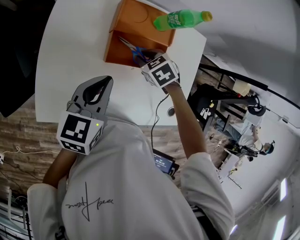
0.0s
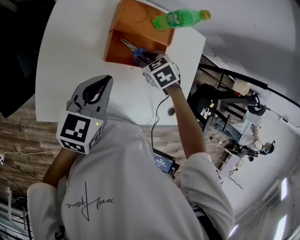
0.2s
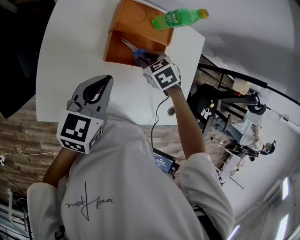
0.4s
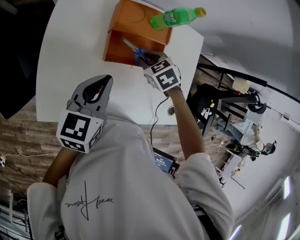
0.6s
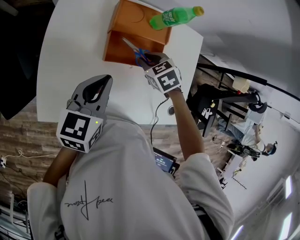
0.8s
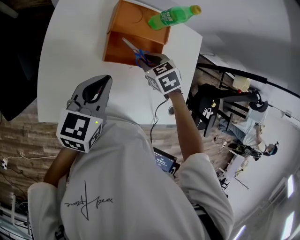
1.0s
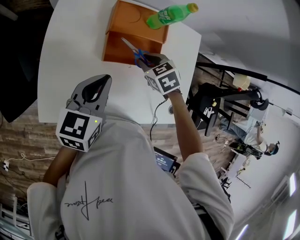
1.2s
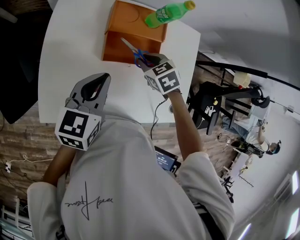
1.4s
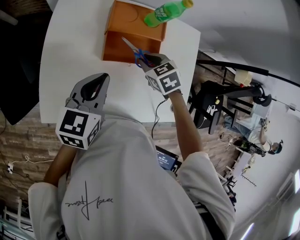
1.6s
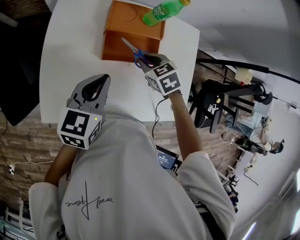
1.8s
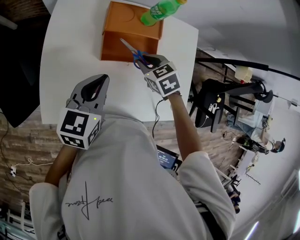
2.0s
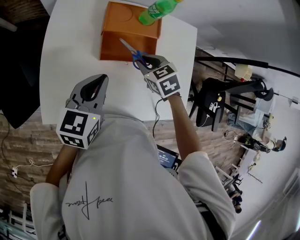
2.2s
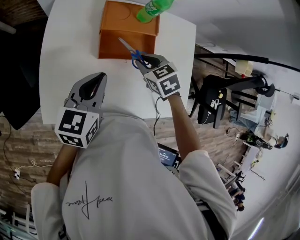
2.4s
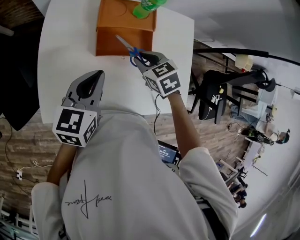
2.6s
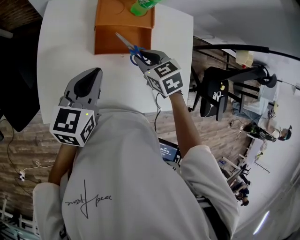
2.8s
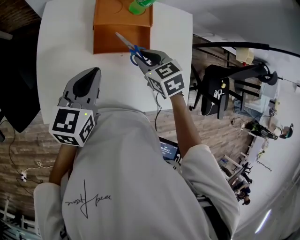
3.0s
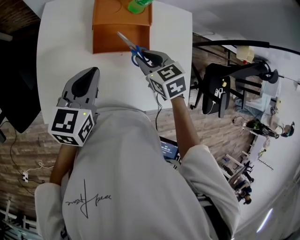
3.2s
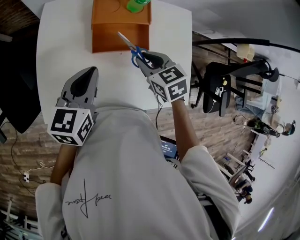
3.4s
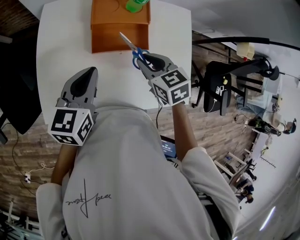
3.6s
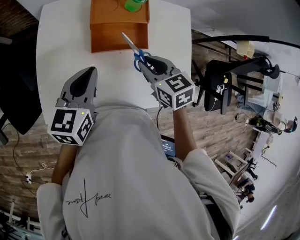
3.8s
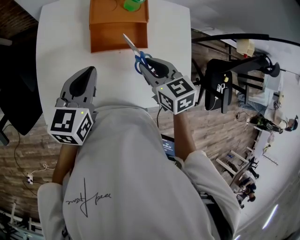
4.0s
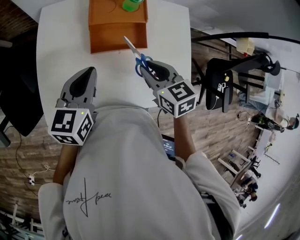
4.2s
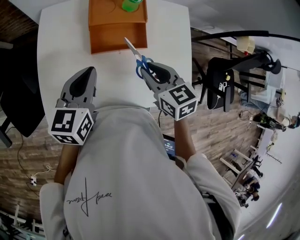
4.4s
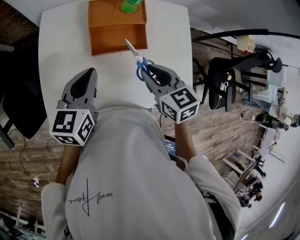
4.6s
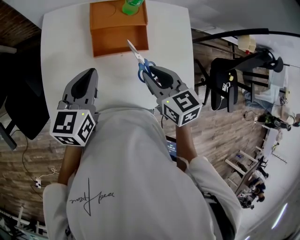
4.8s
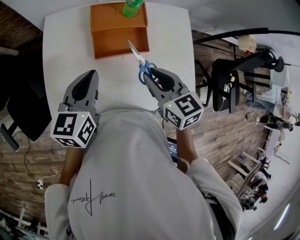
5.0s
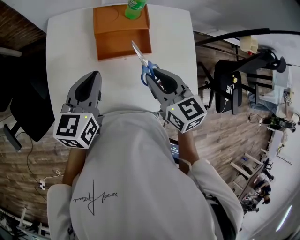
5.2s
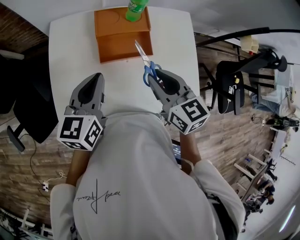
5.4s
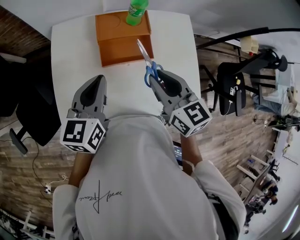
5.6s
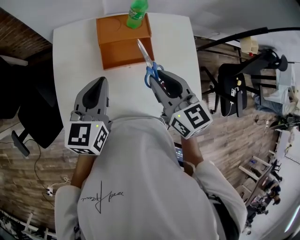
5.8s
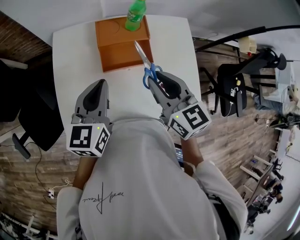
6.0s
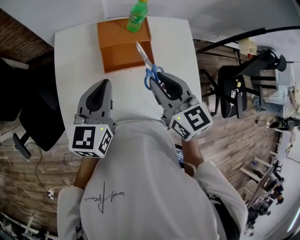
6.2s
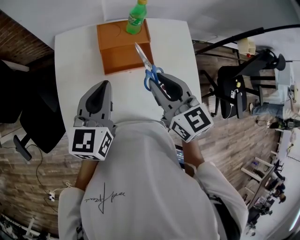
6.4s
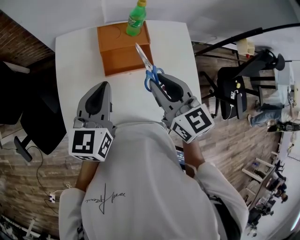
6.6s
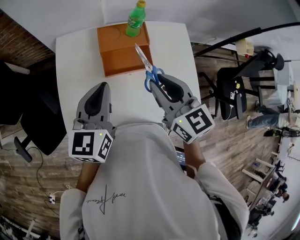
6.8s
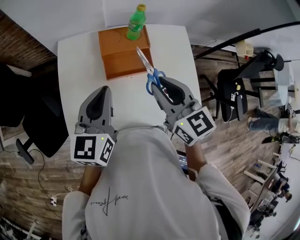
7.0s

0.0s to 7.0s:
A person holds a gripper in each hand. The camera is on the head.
0.0s to 1.4s: The grippers stay close to where they were, moving slightly.
1.4s to 2.8s: The right gripper moves about 5 cm.
2.8s to 4.2s: The right gripper moves backward and upward, about 10 cm.
4.2s to 5.6s: The right gripper heads upward, covering about 10 cm, and swivels approximately 20 degrees.
5.6s to 7.0s: Both grippers move upward, about 5 cm.

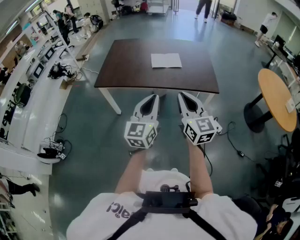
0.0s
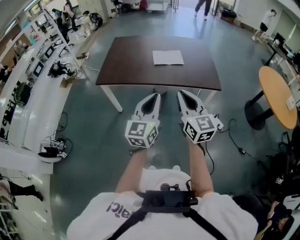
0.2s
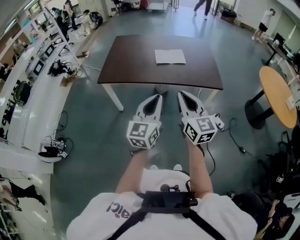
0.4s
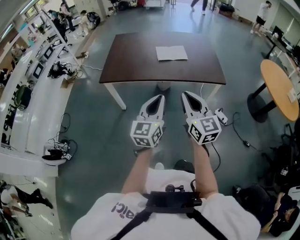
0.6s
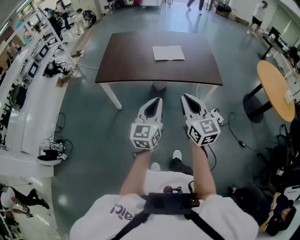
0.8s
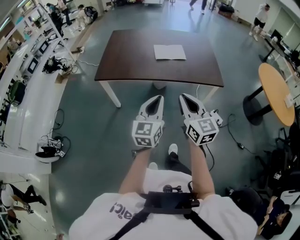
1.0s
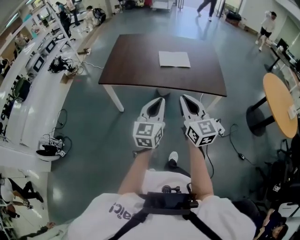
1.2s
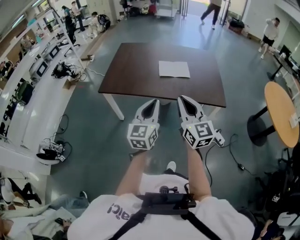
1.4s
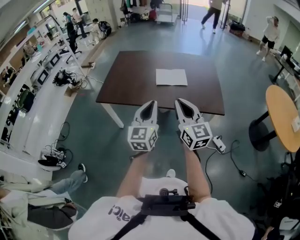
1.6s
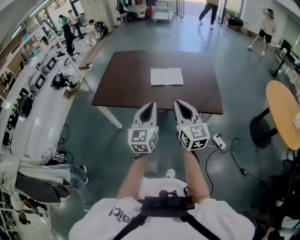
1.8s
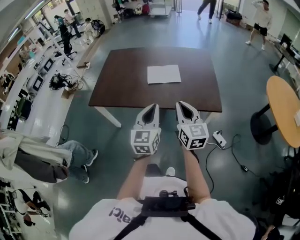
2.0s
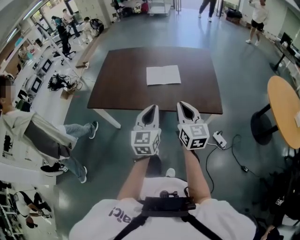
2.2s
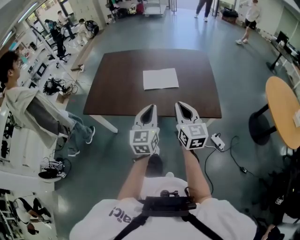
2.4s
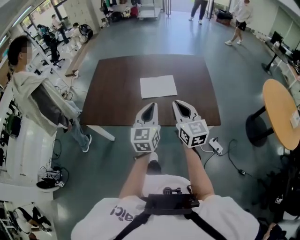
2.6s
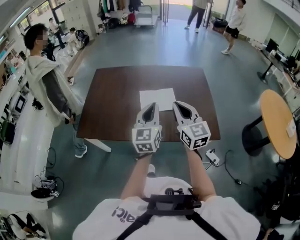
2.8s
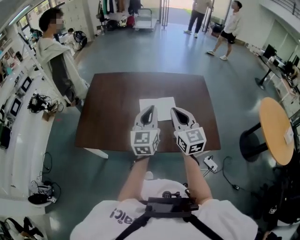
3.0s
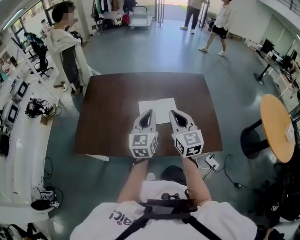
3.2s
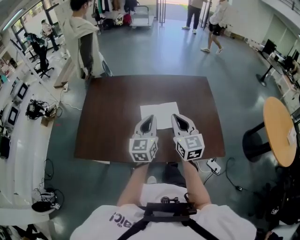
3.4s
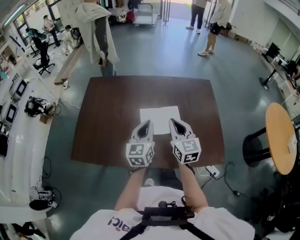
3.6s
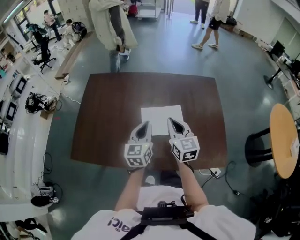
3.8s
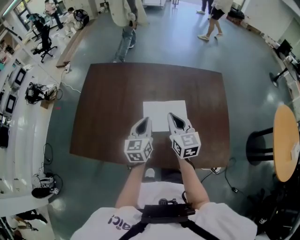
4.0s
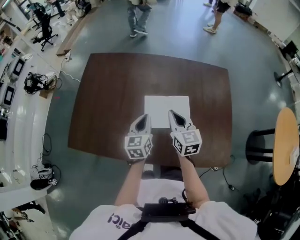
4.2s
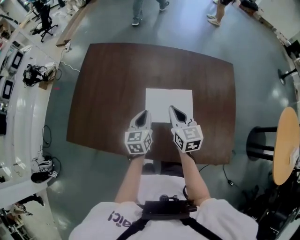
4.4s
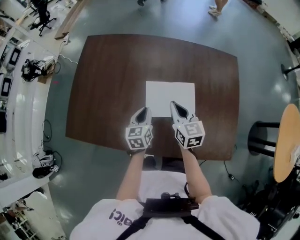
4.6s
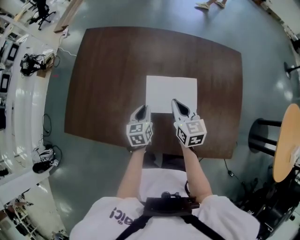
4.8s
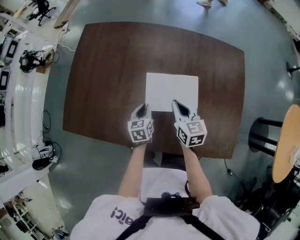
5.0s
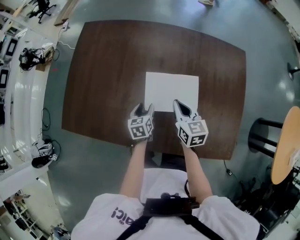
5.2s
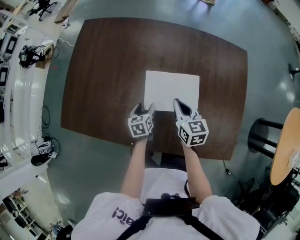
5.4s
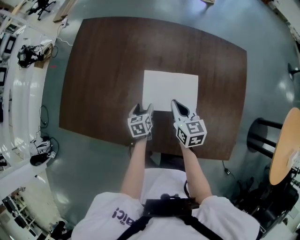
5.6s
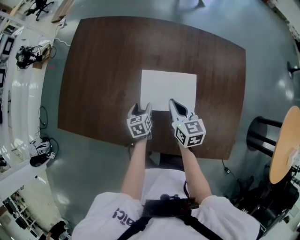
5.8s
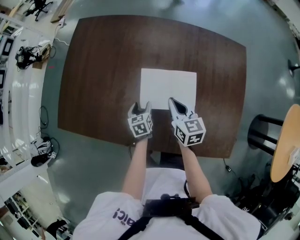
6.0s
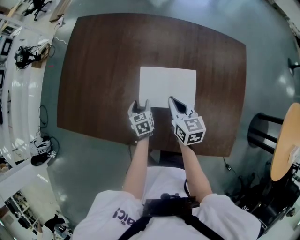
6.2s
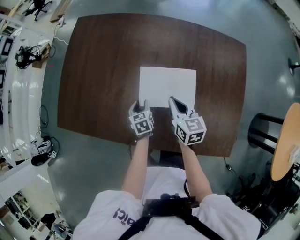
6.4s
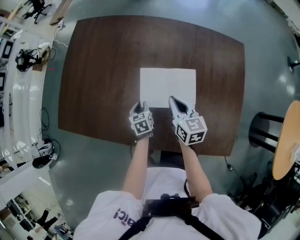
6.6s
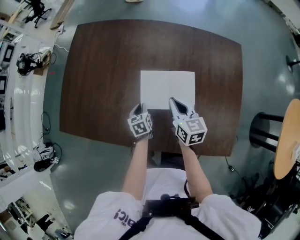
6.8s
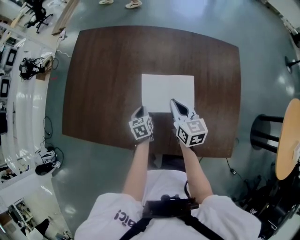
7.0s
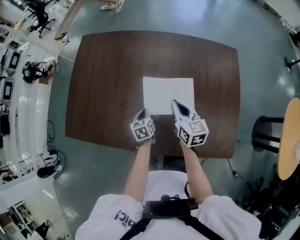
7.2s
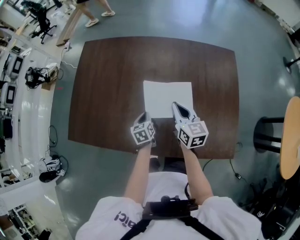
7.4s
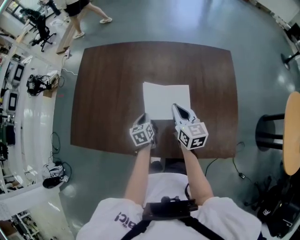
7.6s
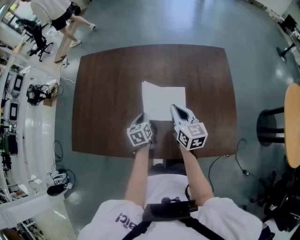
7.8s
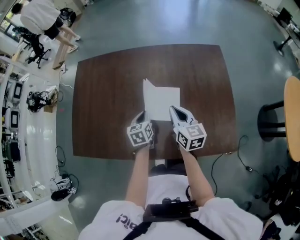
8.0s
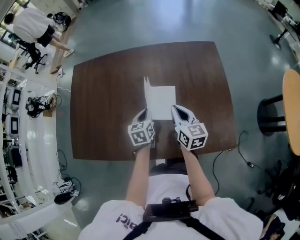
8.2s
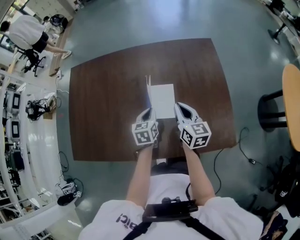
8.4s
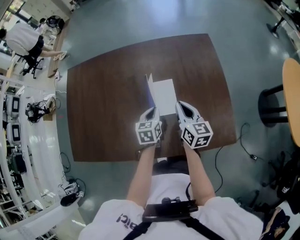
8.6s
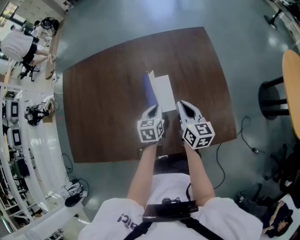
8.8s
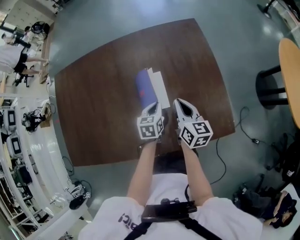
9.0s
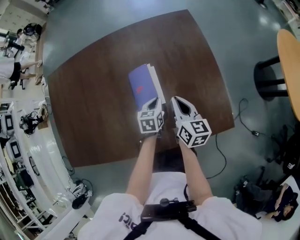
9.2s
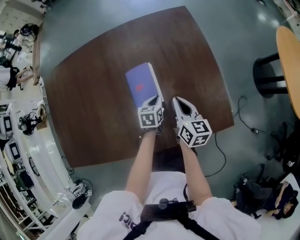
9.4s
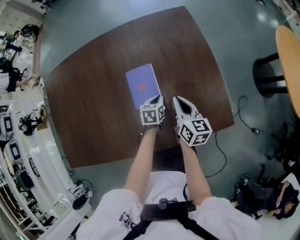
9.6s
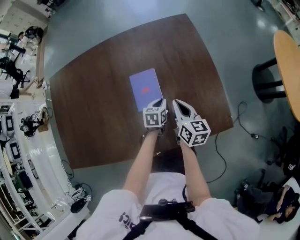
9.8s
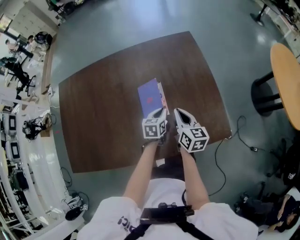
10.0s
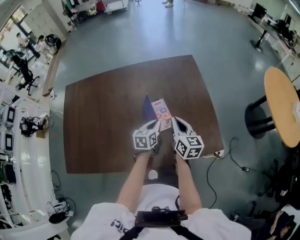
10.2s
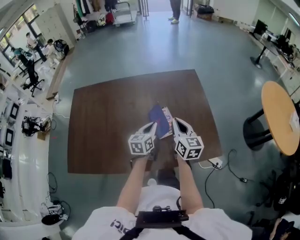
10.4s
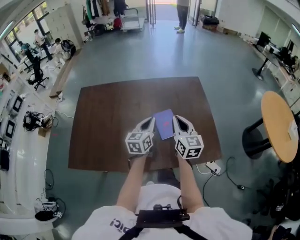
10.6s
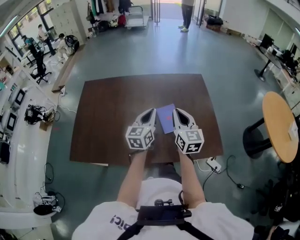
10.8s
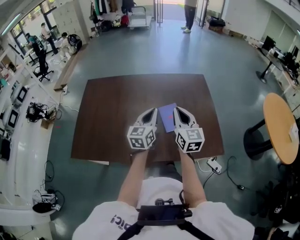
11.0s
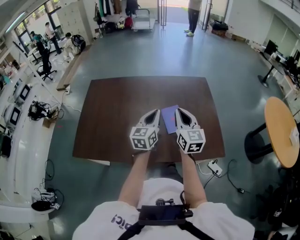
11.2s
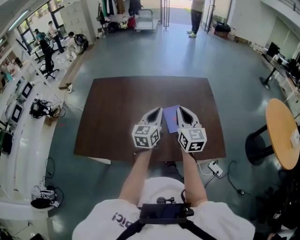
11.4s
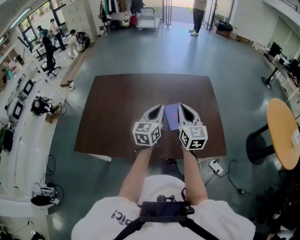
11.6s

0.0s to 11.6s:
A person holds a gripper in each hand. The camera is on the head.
0.0s to 1.4s: Both grippers travel together forward, approximately 10 cm.
1.4s to 2.8s: The grippers both shift forward by some 30 cm.
2.8s to 4.4s: The left gripper is displaced downward and forward by some 30 cm, and changes its angle by approximately 30 degrees; the right gripper heads forward and downward, covering about 30 cm, and changes its angle by roughly 20 degrees.
4.4s to 5.8s: The right gripper heads downward, covering some 10 cm, while the left gripper moves downward, some 20 cm, swivels roughly 30 degrees, and opens up.
5.8s to 7.2s: The left gripper closes its fingers.
7.2s to 8.8s: The left gripper heads to the right and upward, covering about 20 cm, and changes its angle by approximately 30 degrees. Meanwhile the right gripper travels to the right by roughly 15 cm, and swivels some 20 degrees.
8.8s to 10.2s: The left gripper travels downward and back again, about 10 cm each way. Meanwhile the right gripper goes downward and returns, some 5 cm each way.
10.2s to 11.6s: The grippers both shift upward by some 20 cm. The left gripper swivels about 30 degrees, while the right gripper swivels roughly 30 degrees.

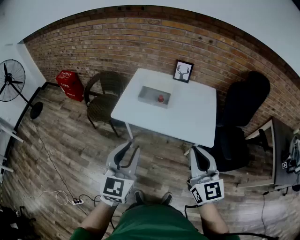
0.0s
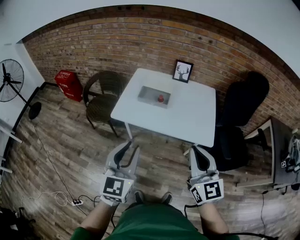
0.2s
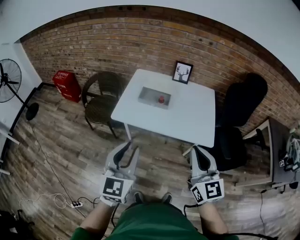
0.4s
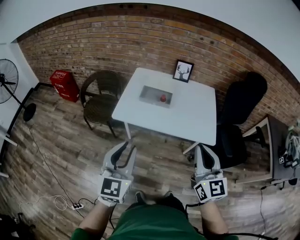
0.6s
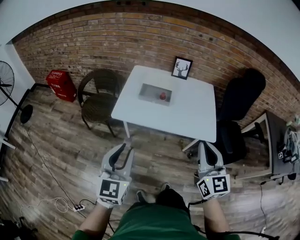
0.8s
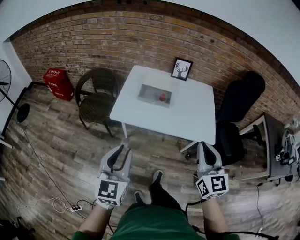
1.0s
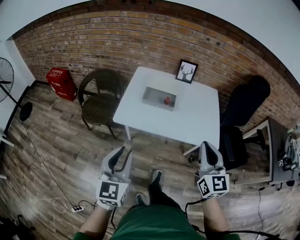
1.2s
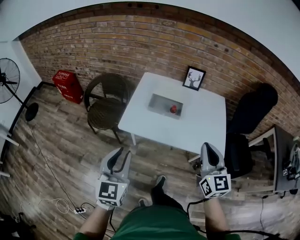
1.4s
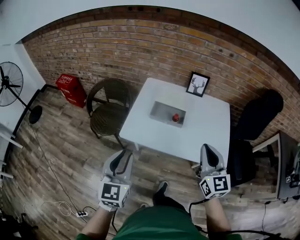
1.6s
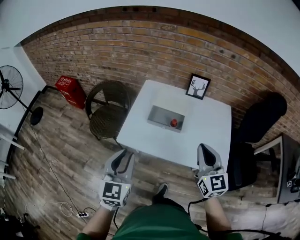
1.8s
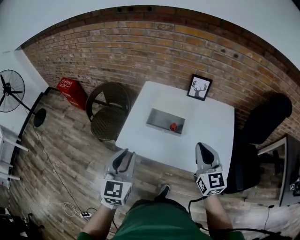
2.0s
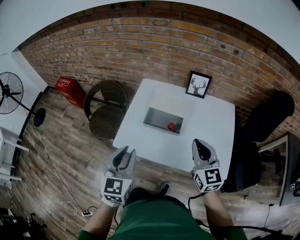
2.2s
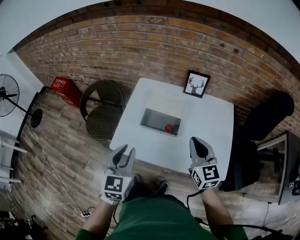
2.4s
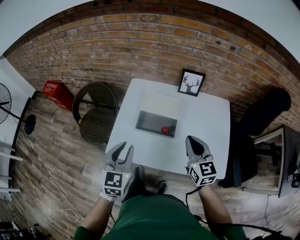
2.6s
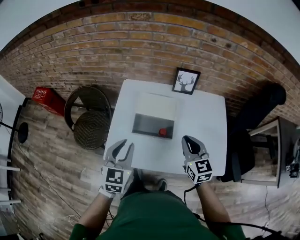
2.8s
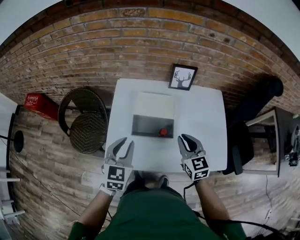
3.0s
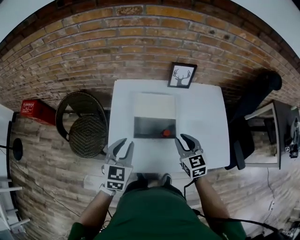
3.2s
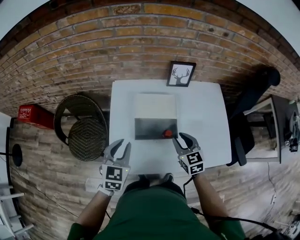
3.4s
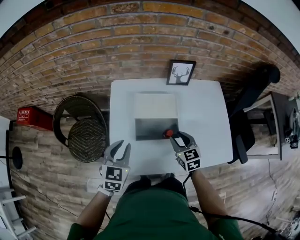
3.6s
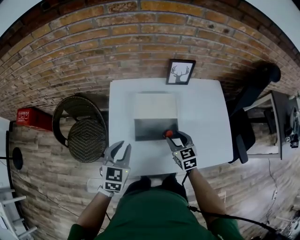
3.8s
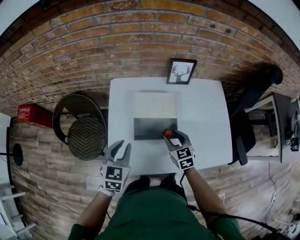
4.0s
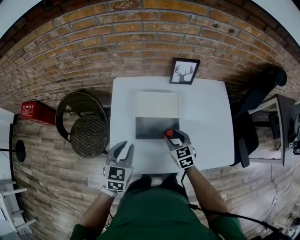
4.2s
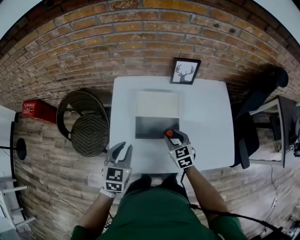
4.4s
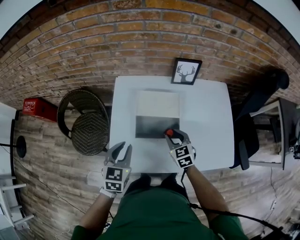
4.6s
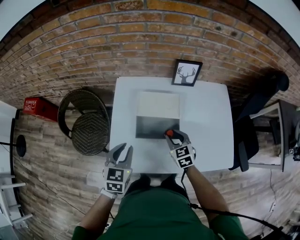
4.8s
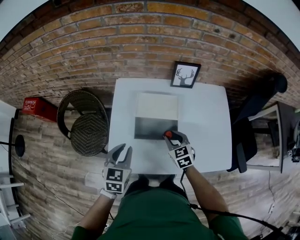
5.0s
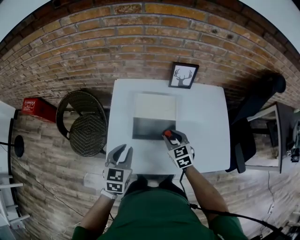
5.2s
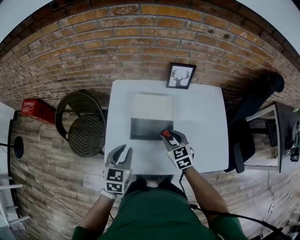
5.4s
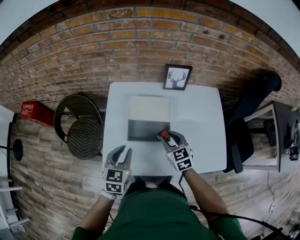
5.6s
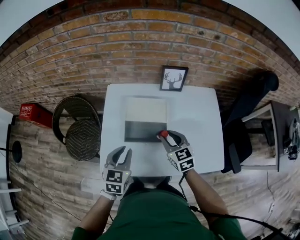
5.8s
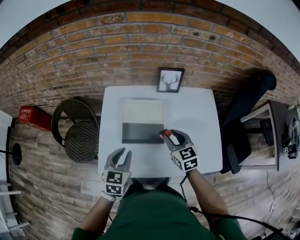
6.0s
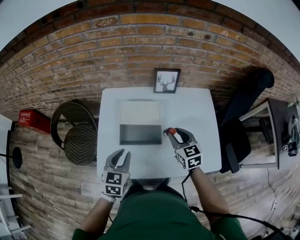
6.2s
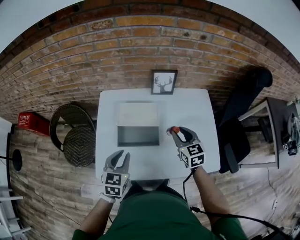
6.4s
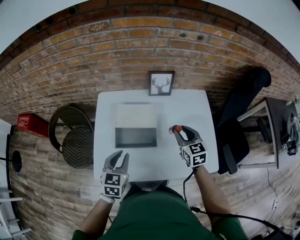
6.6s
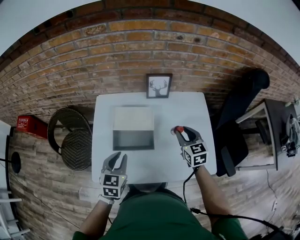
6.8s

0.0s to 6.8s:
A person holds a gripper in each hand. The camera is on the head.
0.0s to 1.4s: The right gripper heads forward and to the left, covering about 15 cm. The left gripper is displaced to the left and forward by some 15 cm.
1.4s to 2.8s: The right gripper shifts approximately 30 cm forward and downward, while the left gripper travels forward by approximately 30 cm.
2.8s to 4.0s: The left gripper heads downward, forward and to the left, covering some 10 cm; the right gripper heads downward, to the left and forward, covering roughly 20 cm, and opens up.
4.0s to 5.4s: The grippers make only small movements.
5.4s to 6.8s: The left gripper goes some 5 cm to the right. Meanwhile the right gripper shifts some 20 cm to the right.
